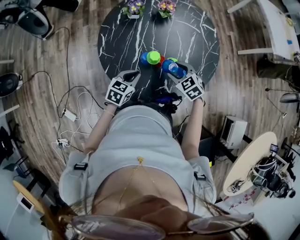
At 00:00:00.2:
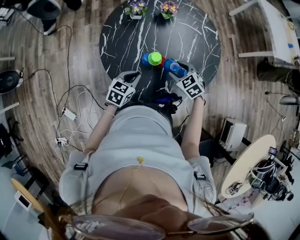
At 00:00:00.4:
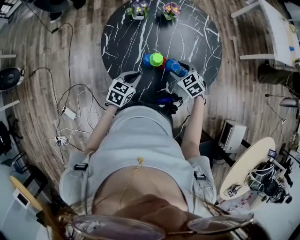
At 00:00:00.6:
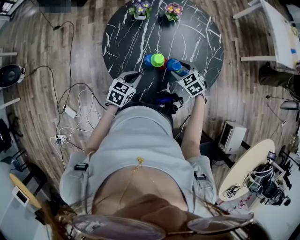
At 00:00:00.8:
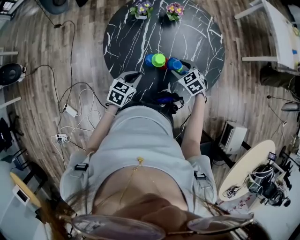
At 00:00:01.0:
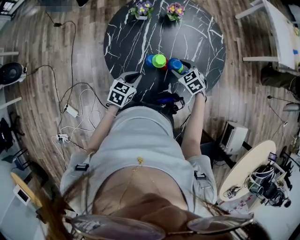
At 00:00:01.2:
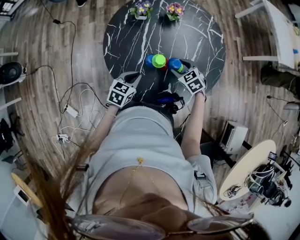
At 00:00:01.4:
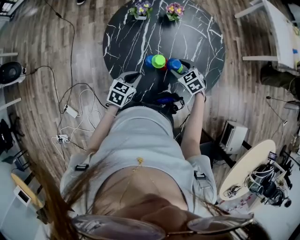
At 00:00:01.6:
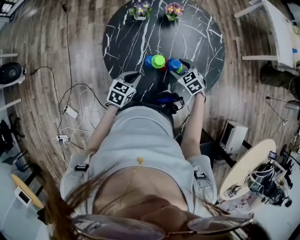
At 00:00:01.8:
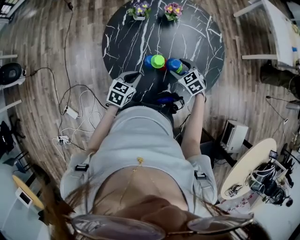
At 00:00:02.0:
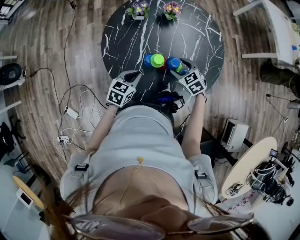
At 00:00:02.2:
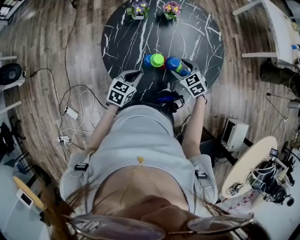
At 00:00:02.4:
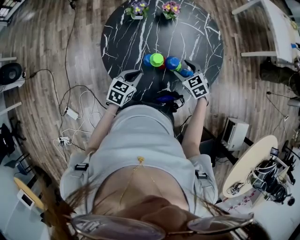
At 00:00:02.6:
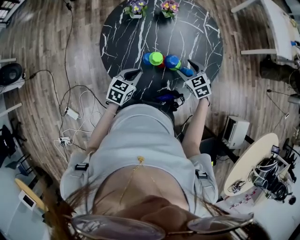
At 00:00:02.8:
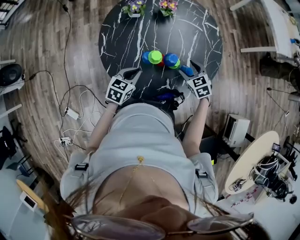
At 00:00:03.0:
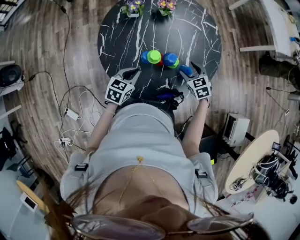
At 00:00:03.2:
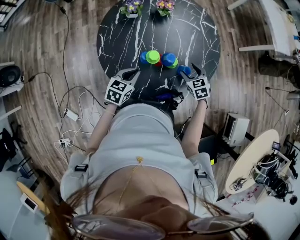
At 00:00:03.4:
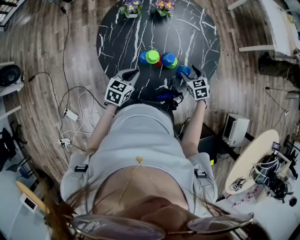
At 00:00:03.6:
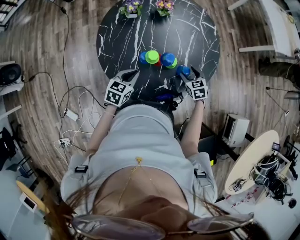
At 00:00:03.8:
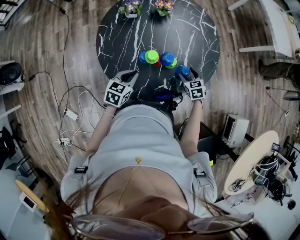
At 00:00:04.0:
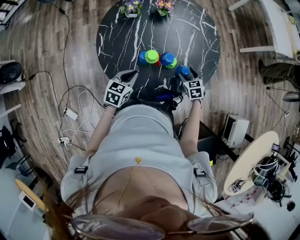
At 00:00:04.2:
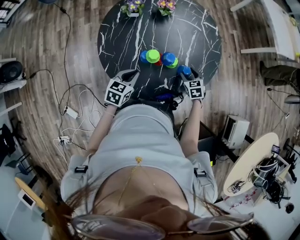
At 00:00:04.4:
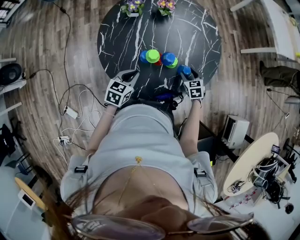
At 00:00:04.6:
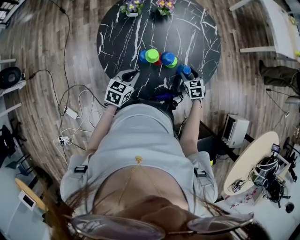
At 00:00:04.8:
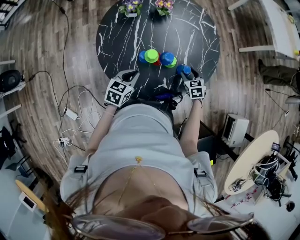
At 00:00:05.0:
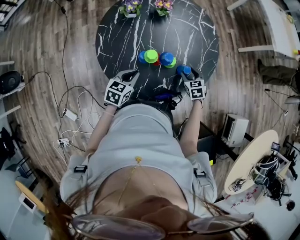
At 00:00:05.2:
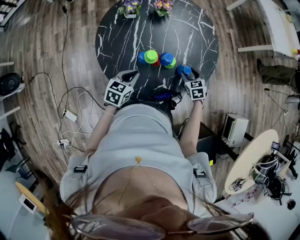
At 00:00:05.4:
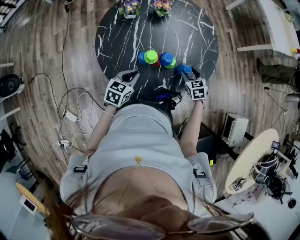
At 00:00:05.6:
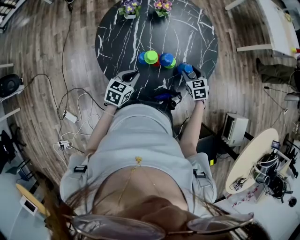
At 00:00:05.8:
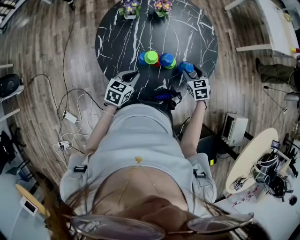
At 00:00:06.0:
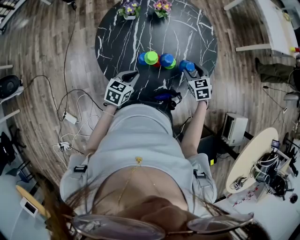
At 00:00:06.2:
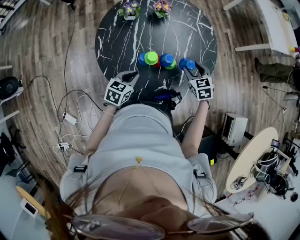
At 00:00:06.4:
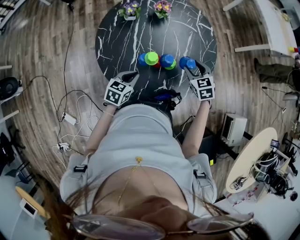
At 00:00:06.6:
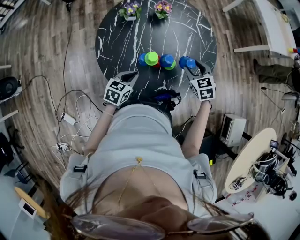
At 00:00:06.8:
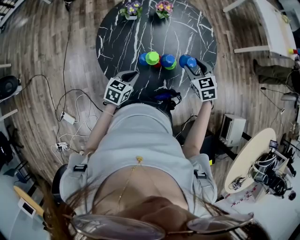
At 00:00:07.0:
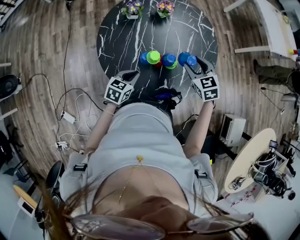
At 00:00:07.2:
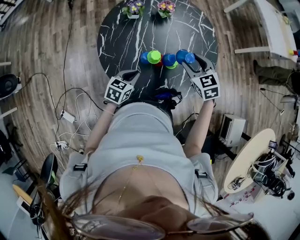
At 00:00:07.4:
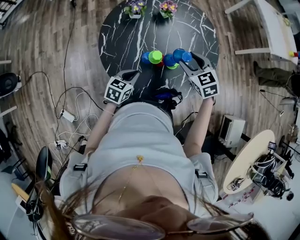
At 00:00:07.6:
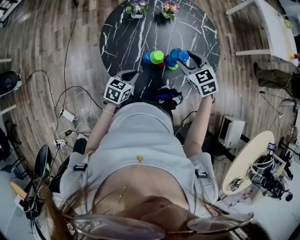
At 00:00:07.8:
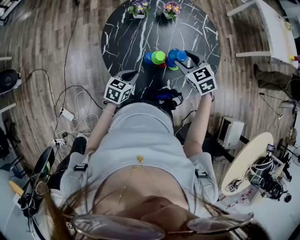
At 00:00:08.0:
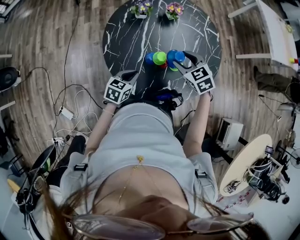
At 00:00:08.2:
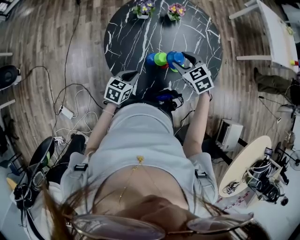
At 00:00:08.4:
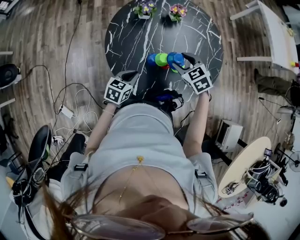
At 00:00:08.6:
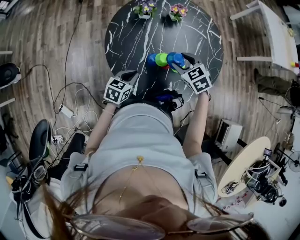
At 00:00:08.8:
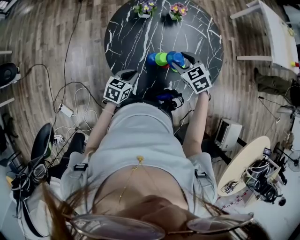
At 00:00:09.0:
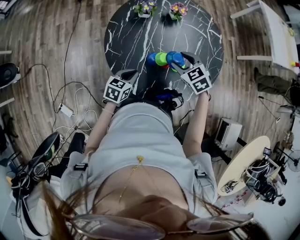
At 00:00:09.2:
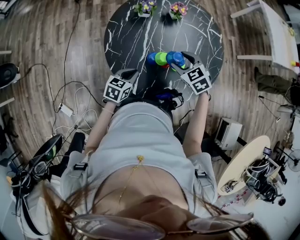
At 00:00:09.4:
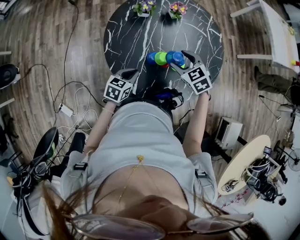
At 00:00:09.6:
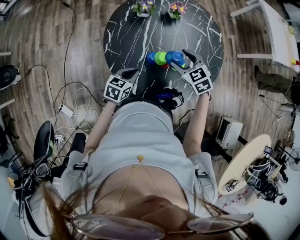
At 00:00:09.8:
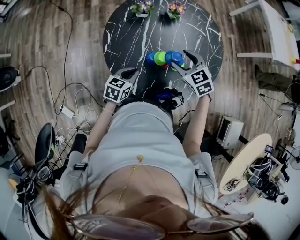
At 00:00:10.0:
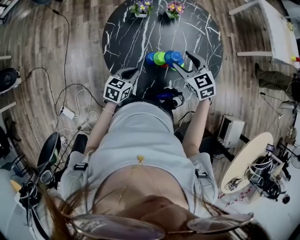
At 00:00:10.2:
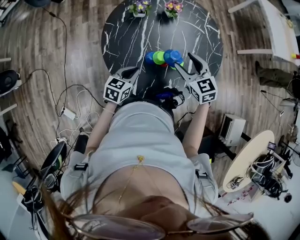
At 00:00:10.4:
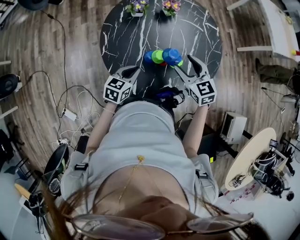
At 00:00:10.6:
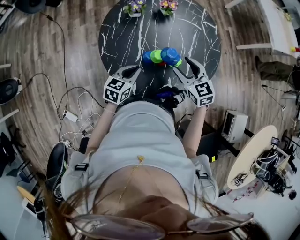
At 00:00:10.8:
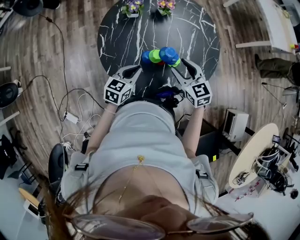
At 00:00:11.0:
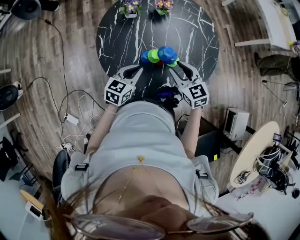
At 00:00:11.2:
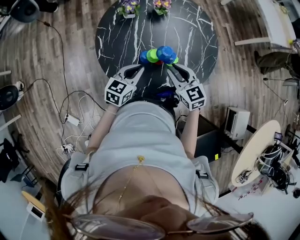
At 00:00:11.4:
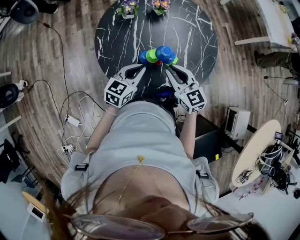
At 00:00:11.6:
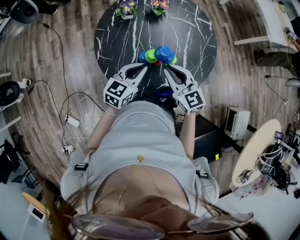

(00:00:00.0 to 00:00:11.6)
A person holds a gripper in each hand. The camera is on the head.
00:00:00.0 - 00:00:01.4: The right gripper changes place by roughly 5 cm.
00:00:01.4 - 00:00:02.8: The right gripper shifts some 5 cm to the right.
00:00:02.8 - 00:00:04.4: The right gripper shifts approximately 10 cm downward and to the right.
00:00:04.4 - 00:00:05.8: The right gripper travels upward by some 5 cm.
00:00:05.8 - 00:00:07.2: The right gripper goes some 15 cm upward and to the left.
00:00:07.2 - 00:00:08.8: The right gripper heads to the left, covering about 10 cm.
00:00:08.8 - 00:00:10.2: The right gripper moves about 5 cm, and rotates about 20 degrees.
00:00:10.2 - 00:00:11.6: The left gripper shifts some 10 cm upward and to the right, while the right gripper goes roughly 5 cm backward, and closes up.

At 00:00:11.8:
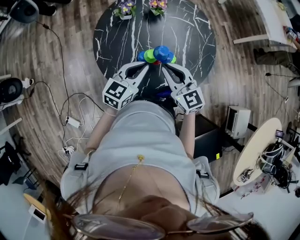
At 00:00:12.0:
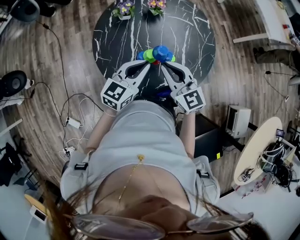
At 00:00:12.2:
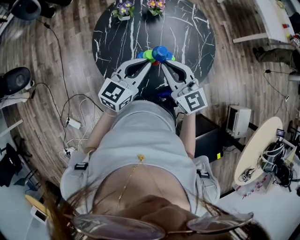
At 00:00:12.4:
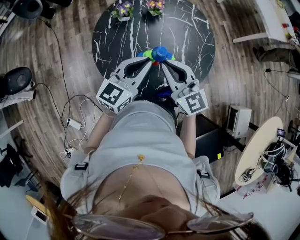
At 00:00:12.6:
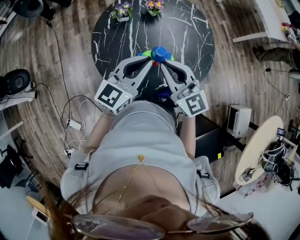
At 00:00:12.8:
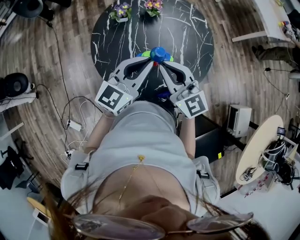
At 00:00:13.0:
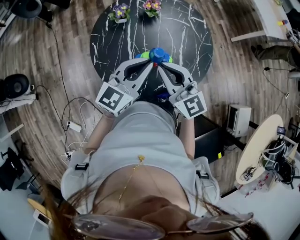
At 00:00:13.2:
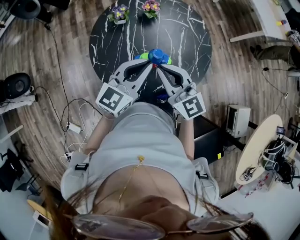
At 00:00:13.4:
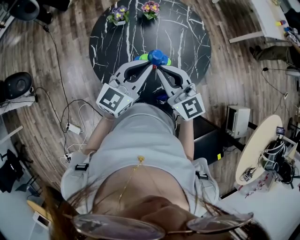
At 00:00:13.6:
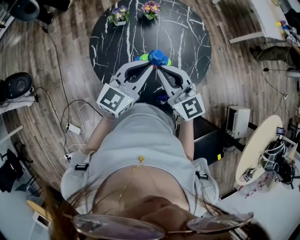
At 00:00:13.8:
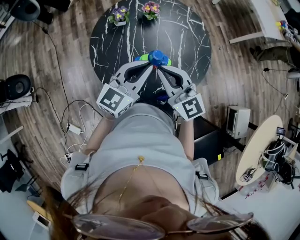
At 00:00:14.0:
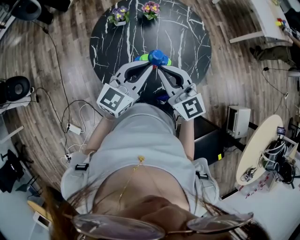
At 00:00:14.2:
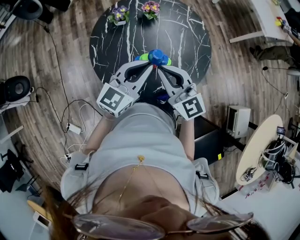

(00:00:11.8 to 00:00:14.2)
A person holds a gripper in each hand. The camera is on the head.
00:00:11.8 - 00:00:13.0: The grippers both shift upward by approximately 10 cm.
00:00:13.0 - 00:00:14.2: The two grippers keep their place.

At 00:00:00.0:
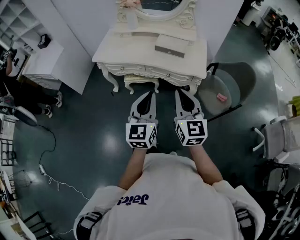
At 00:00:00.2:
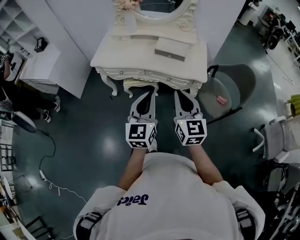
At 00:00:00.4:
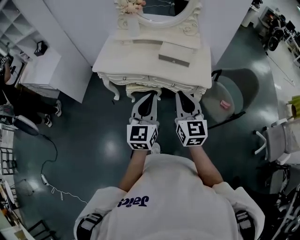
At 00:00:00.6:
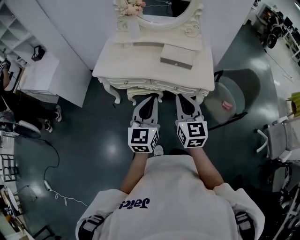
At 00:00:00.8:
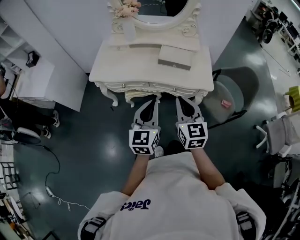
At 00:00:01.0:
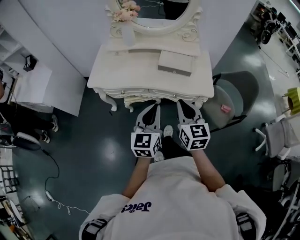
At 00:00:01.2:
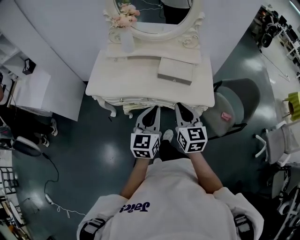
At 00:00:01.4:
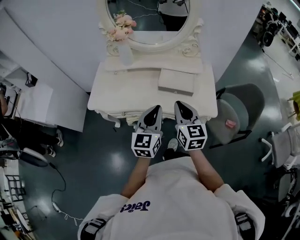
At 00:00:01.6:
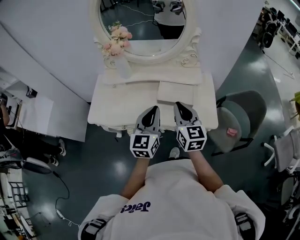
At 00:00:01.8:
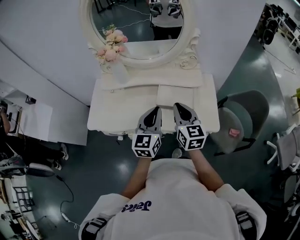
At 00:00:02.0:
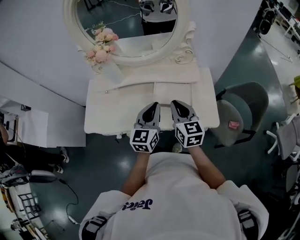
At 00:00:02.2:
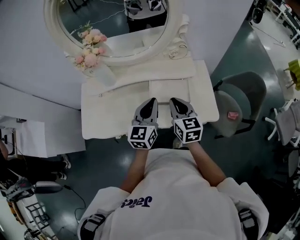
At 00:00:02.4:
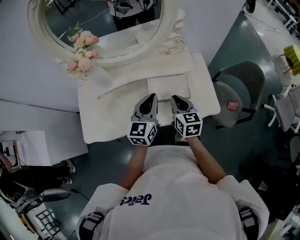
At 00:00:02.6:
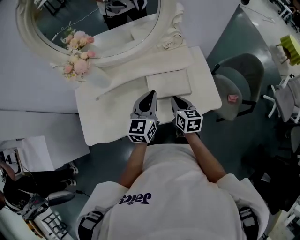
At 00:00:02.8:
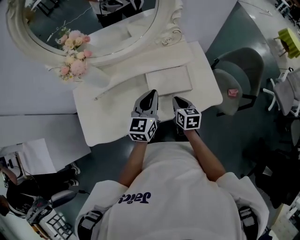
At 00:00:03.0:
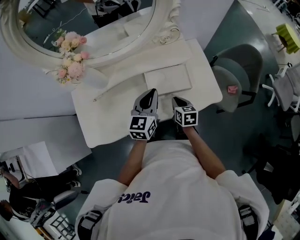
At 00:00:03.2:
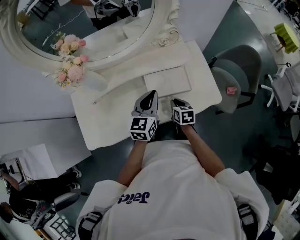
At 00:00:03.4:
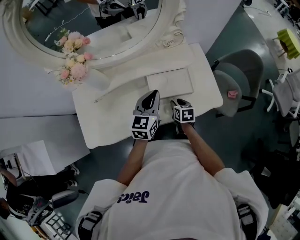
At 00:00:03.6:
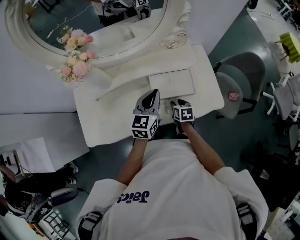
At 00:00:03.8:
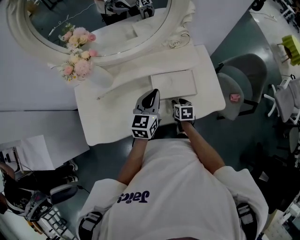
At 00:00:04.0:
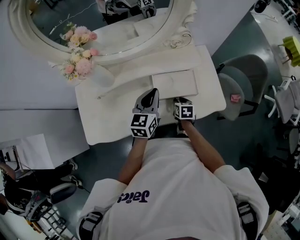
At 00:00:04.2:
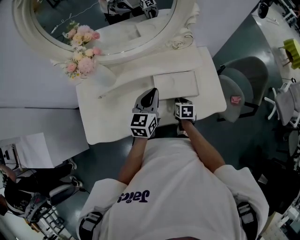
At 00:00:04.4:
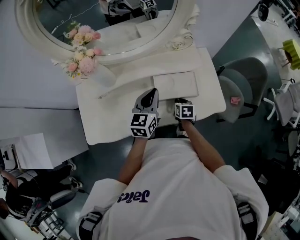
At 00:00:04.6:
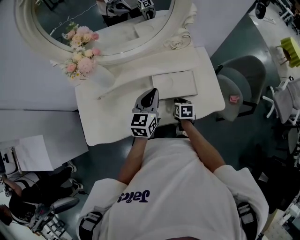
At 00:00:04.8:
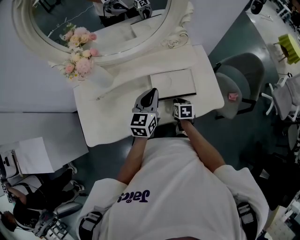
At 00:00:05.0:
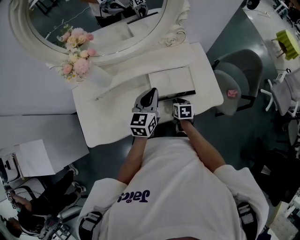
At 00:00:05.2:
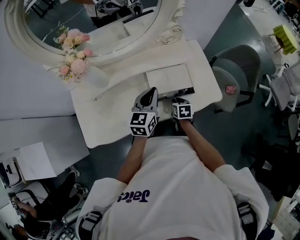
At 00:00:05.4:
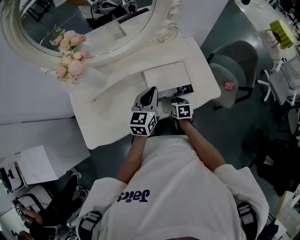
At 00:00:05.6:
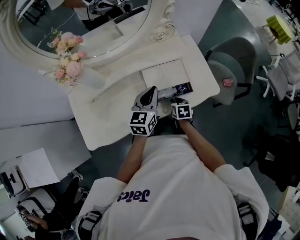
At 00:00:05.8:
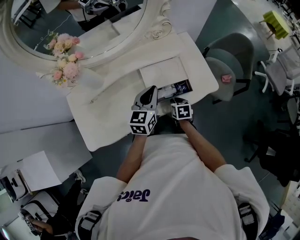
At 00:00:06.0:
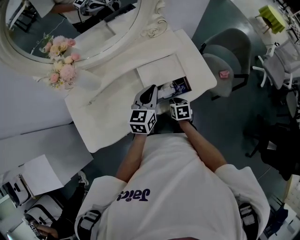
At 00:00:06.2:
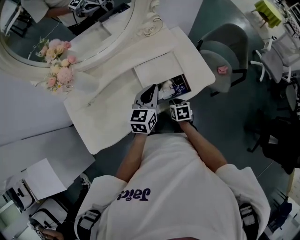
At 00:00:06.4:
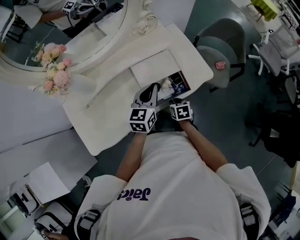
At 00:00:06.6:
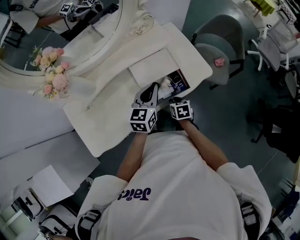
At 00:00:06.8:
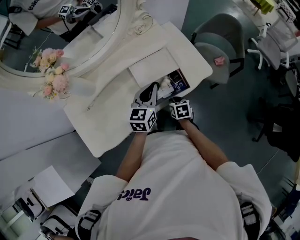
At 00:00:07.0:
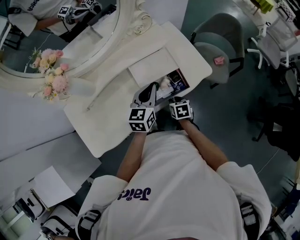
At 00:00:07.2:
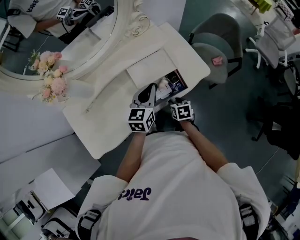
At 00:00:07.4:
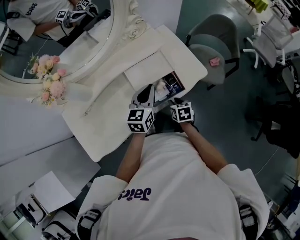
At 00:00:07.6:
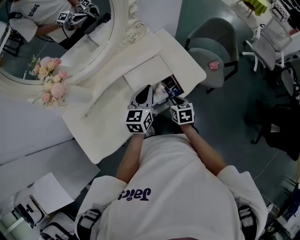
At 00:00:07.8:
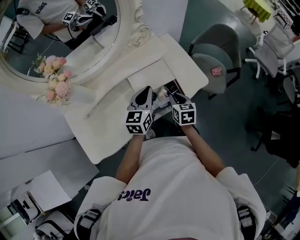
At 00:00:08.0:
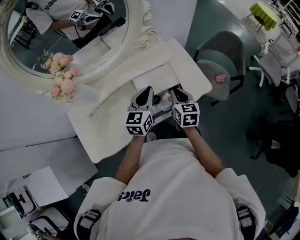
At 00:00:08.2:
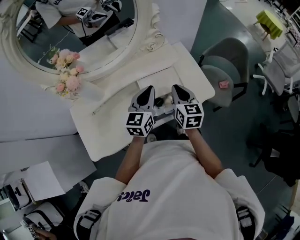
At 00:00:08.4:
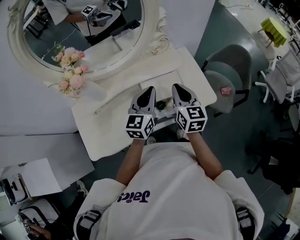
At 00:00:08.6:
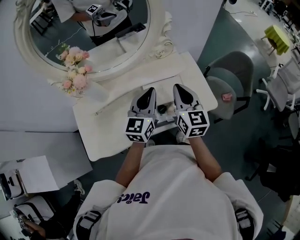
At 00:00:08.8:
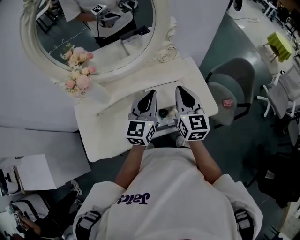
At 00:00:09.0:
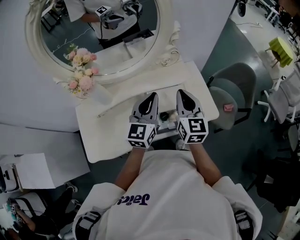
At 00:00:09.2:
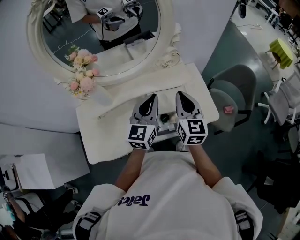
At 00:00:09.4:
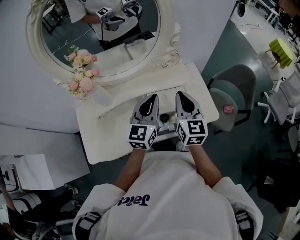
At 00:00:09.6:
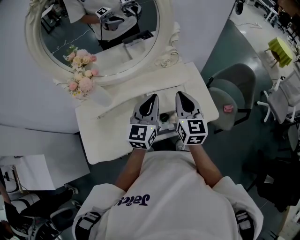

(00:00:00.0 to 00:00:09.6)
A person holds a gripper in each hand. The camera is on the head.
00:00:00.0 - 00:00:01.6: The two grippers go approximately 35 cm forward.
00:00:01.6 - 00:00:03.2: The left gripper is displaced forward and downward by some 20 cm, and swivels about 30 degrees. The right gripper shifts approximately 30 cm downward, and tips its fingers downward by approximately 40 degrees.
00:00:03.2 - 00:00:04.8: The grippers move only a little.
00:00:04.8 - 00:00:06.4: The right gripper travels backward by approximately 10 cm, while the left gripper shifts approximately 5 cm to the right.
00:00:06.4 - 00:00:08.0: The right gripper heads upward and forward, covering some 20 cm, and turns by some 30 degrees.
00:00:08.0 - 00:00:09.6: The right gripper moves upward, some 15 cm, and rotates roughly 20 degrees. Meanwhile the left gripper moves upward, approximately 10 cm.
